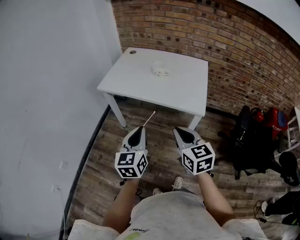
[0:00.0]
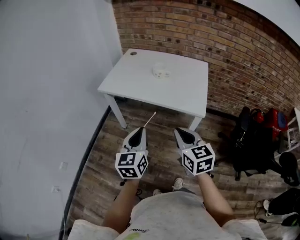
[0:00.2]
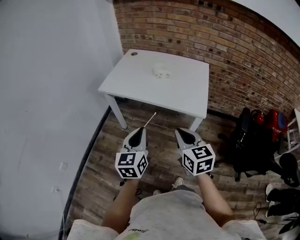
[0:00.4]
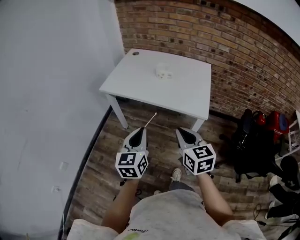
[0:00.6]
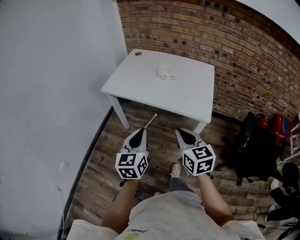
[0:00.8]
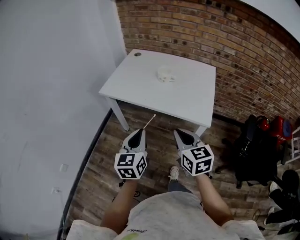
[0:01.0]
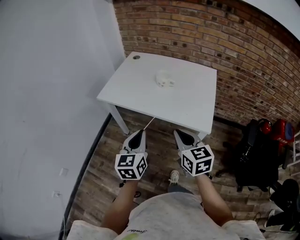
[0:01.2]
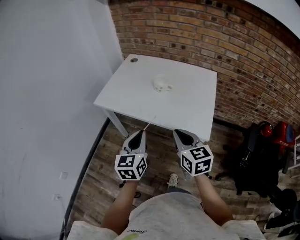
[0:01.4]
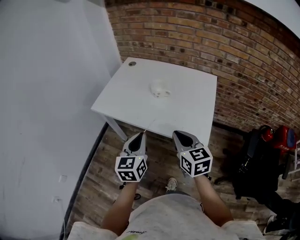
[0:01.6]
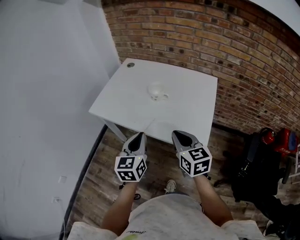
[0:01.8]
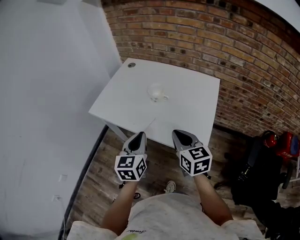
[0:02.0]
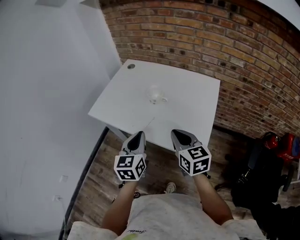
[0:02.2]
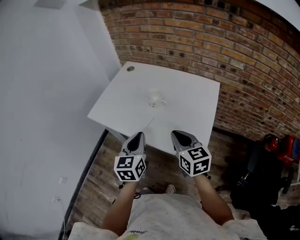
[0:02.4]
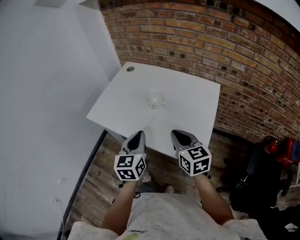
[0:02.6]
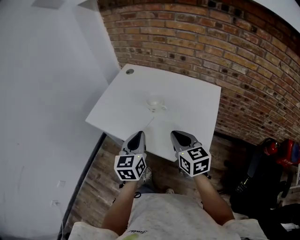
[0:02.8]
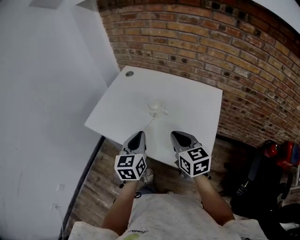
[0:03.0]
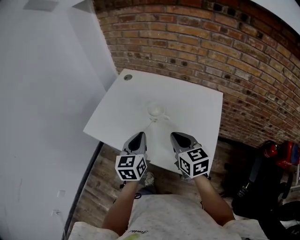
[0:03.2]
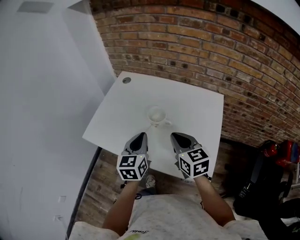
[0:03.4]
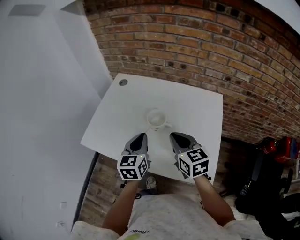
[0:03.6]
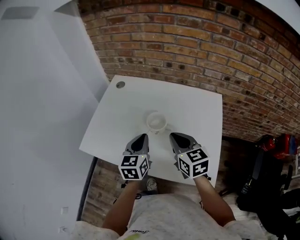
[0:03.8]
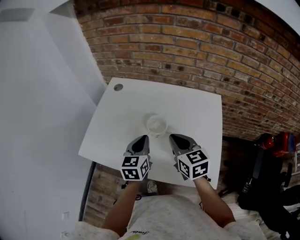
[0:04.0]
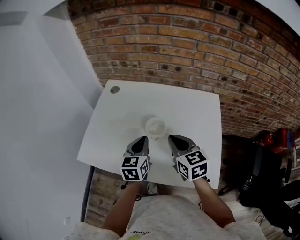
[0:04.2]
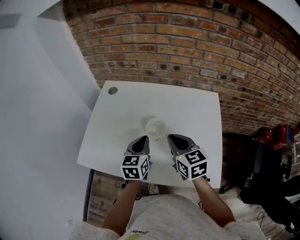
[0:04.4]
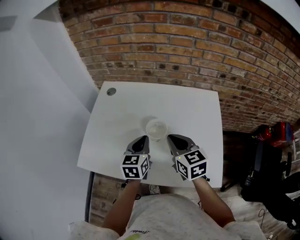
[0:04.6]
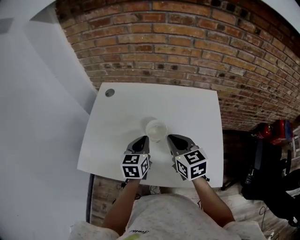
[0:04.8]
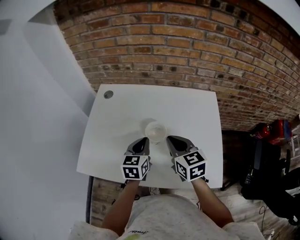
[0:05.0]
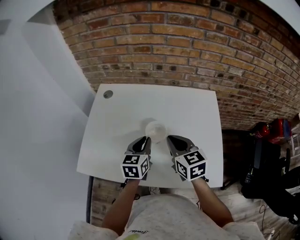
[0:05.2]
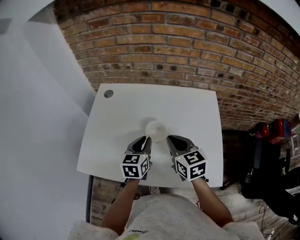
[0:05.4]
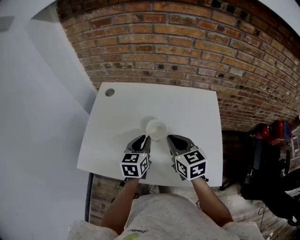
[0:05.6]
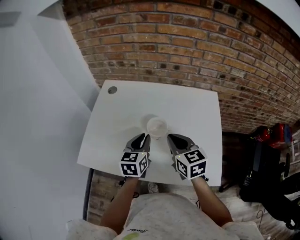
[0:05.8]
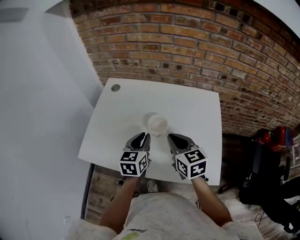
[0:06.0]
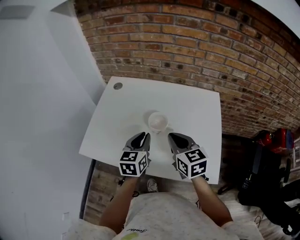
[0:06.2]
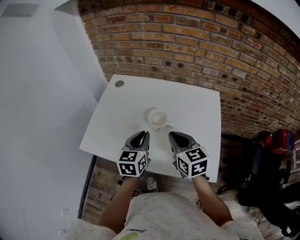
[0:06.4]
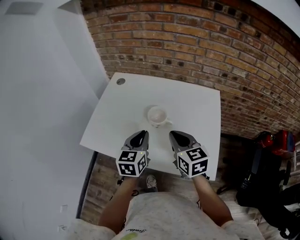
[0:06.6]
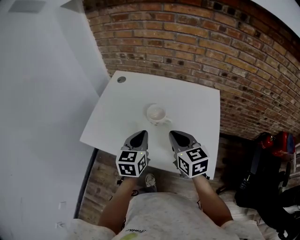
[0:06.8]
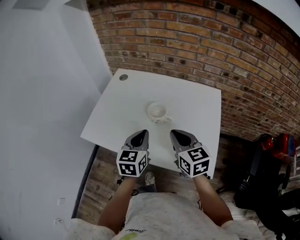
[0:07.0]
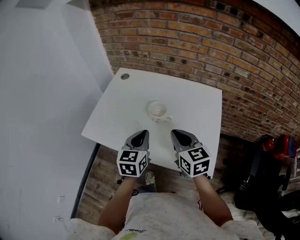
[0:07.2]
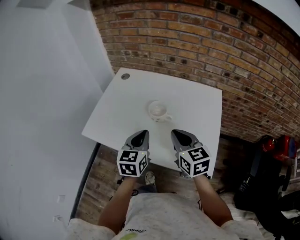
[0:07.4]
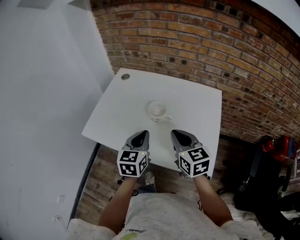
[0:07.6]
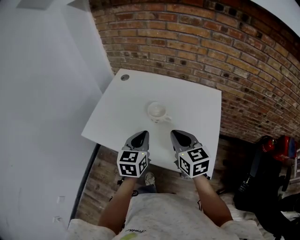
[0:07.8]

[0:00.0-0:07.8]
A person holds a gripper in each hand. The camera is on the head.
0:00.0 to 0:01.6: The grippers both shift forward by some 20 cm.
0:01.6 to 0:03.2: The two grippers go approximately 20 cm forward.
0:03.2 to 0:04.6: The right gripper is displaced forward by roughly 15 cm; the left gripper shifts approximately 15 cm forward and downward.
0:04.6 to 0:06.2: The left gripper ends up roughly 5 cm from where it was.
0:06.2 to 0:07.8: The two grippers go about 10 cm backward.

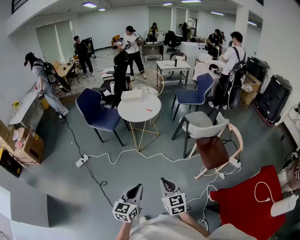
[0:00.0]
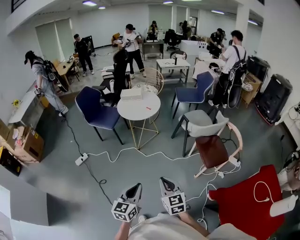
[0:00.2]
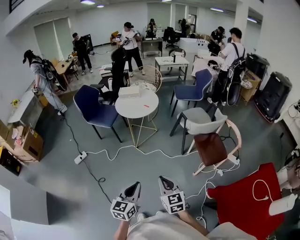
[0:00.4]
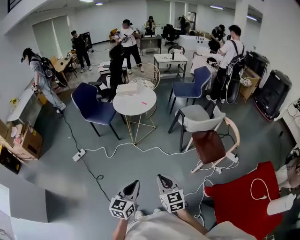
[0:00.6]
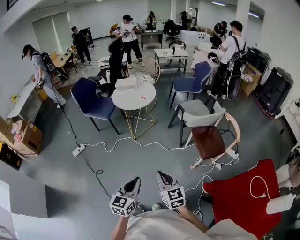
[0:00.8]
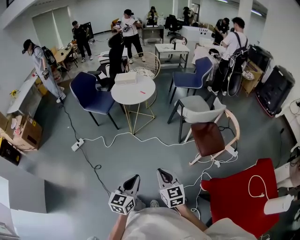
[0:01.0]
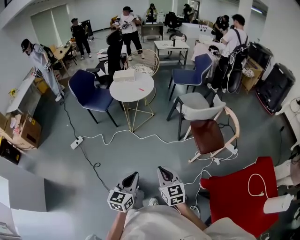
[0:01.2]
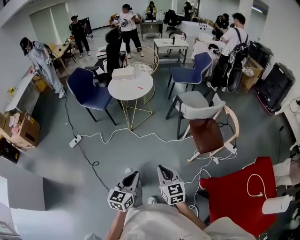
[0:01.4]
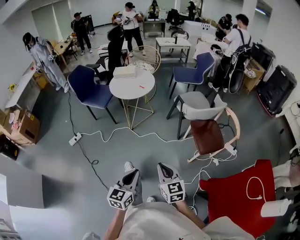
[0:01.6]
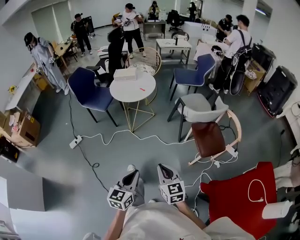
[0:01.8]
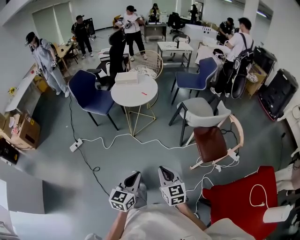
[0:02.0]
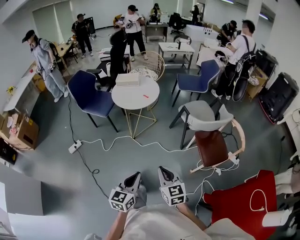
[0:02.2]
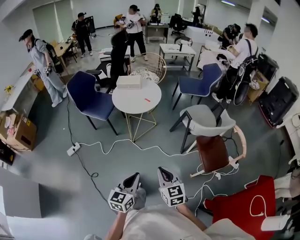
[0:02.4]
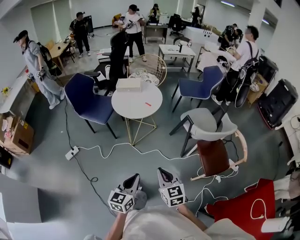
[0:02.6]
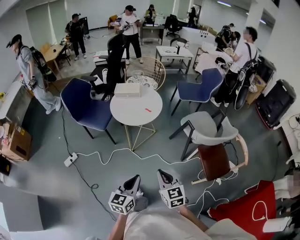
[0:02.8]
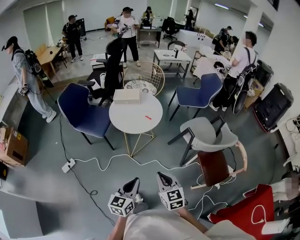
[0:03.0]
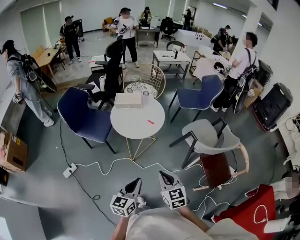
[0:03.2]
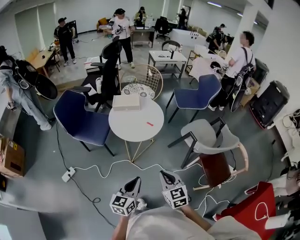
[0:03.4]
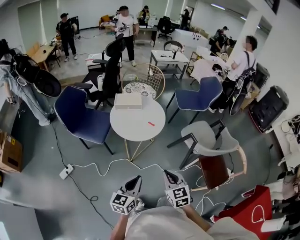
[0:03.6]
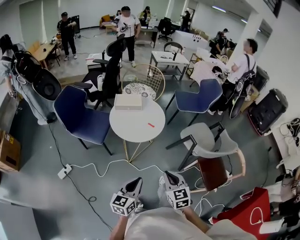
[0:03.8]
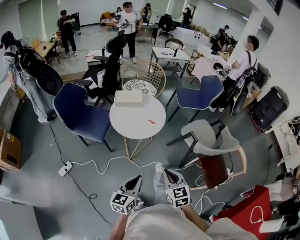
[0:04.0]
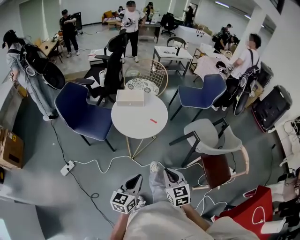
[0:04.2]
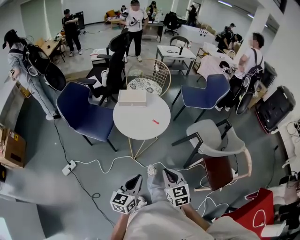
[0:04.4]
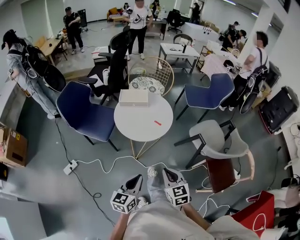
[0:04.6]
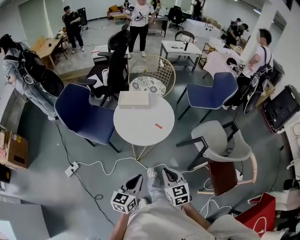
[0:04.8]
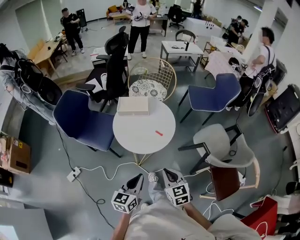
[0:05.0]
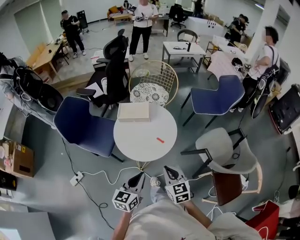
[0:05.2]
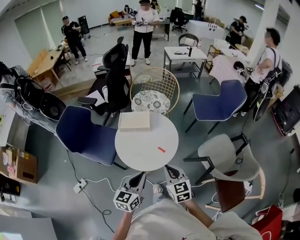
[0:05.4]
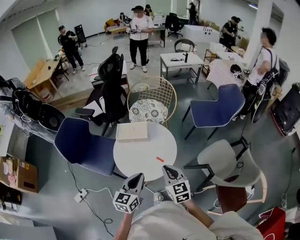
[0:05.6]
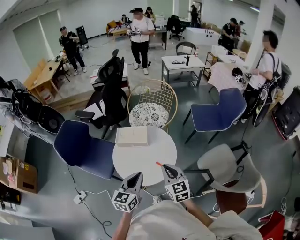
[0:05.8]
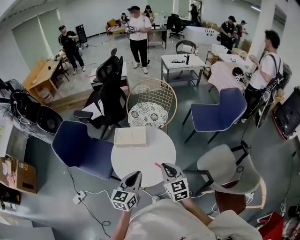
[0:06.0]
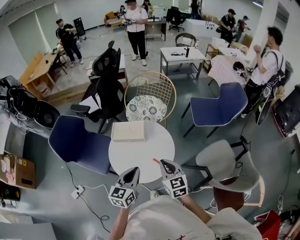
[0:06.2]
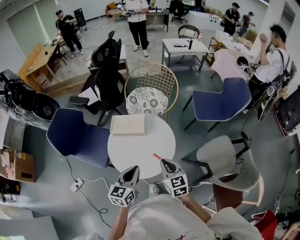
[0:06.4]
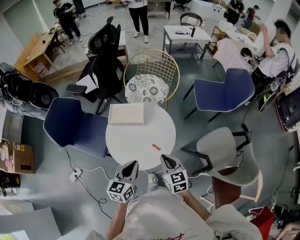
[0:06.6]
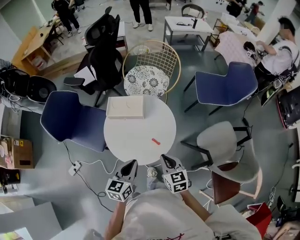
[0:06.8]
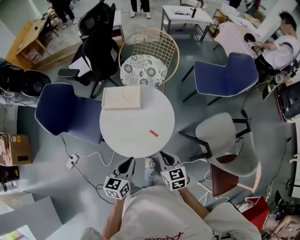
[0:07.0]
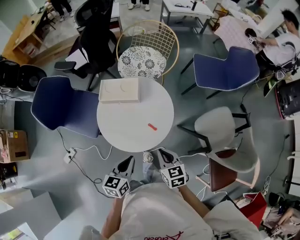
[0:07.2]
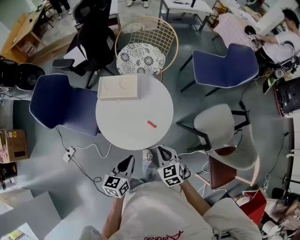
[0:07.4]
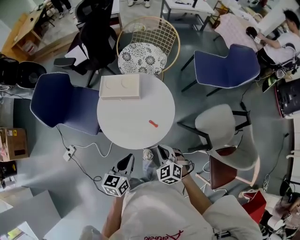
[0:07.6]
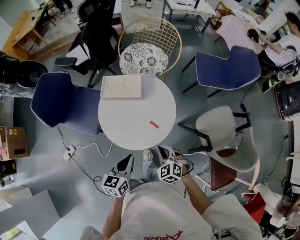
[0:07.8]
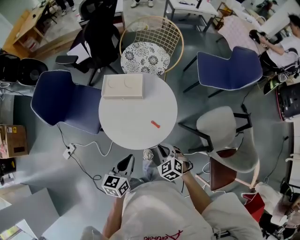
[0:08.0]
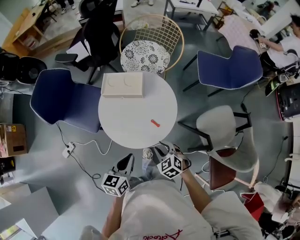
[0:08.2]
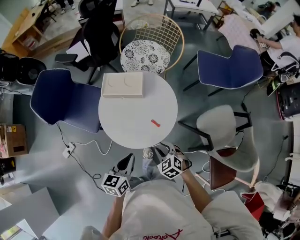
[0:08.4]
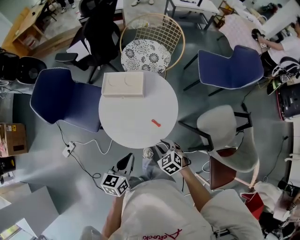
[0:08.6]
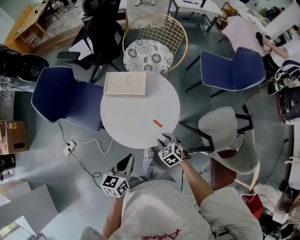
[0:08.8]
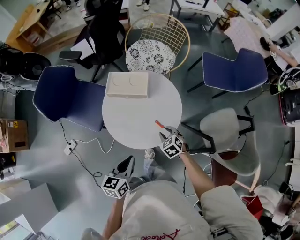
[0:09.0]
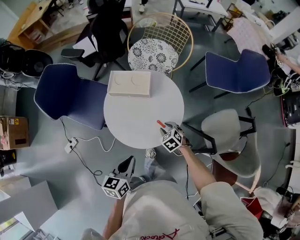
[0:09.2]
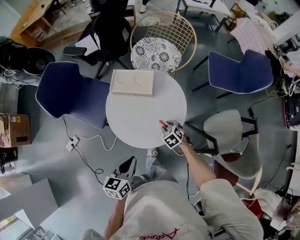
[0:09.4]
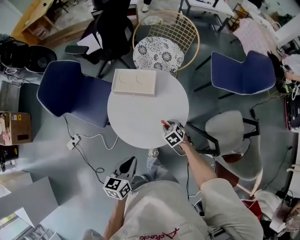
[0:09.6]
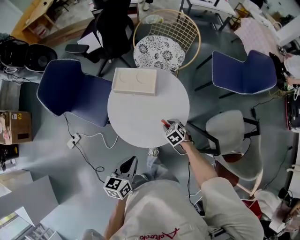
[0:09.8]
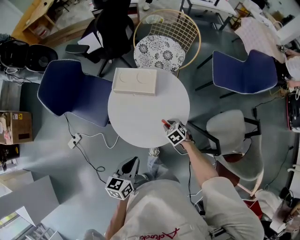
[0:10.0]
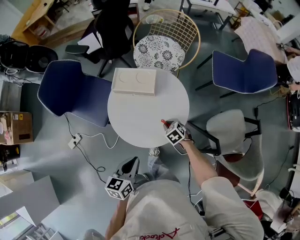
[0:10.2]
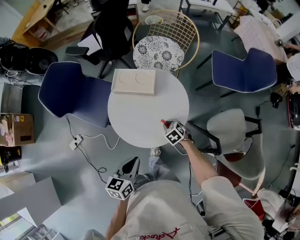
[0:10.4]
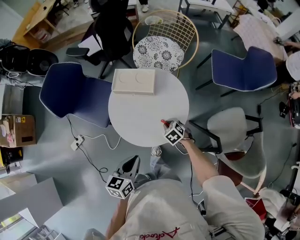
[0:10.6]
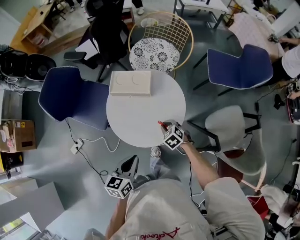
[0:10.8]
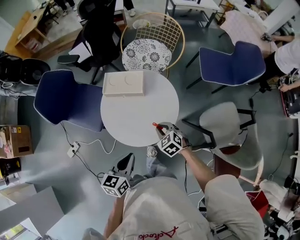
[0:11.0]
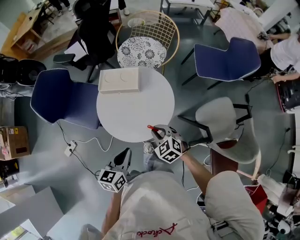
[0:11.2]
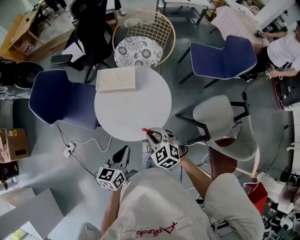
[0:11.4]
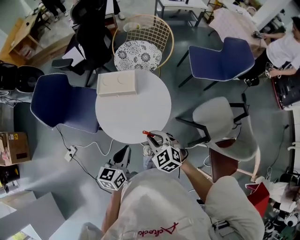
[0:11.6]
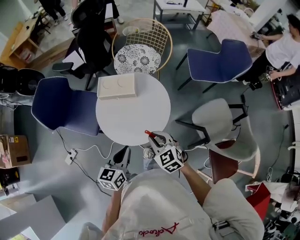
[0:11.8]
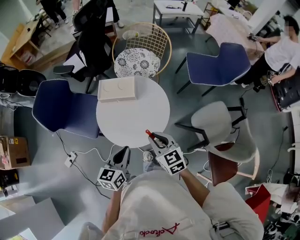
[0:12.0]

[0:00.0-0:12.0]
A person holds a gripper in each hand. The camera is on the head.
0:00.0 to 0:01.6: Both grippers move to the right, some 10 cm.
0:01.6 to 0:03.0: Both grippers travel together forward and to the left, some 30 cm.
0:03.0 to 0:04.4: The left gripper is displaced forward and to the left by approximately 10 cm, while the right gripper heads forward, covering about 10 cm.
0:04.4 to 0:06.0: The grippers both shift forward by approximately 35 cm.
0:06.0 to 0:07.6: The left gripper shifts about 10 cm downward and backward. The right gripper is displaced downward by about 15 cm, and turns by roughly 40 degrees.
0:07.6 to 0:09.0: The right gripper goes about 15 cm downward and forward, and opens its fingers.
0:09.0 to 0:10.4: The right gripper ends up approximately 5 cm from where it was.
0:10.4 to 0:12.0: The left gripper shifts by approximately 5 cm. Meanwhile the right gripper goes roughly 25 cm upward, and tips its fingers upward by some 40 degrees.

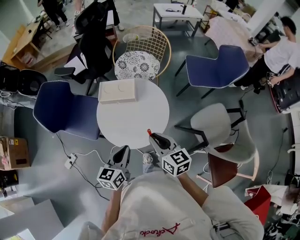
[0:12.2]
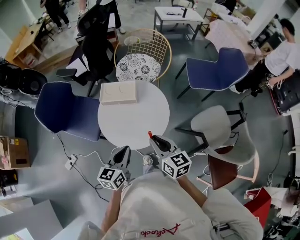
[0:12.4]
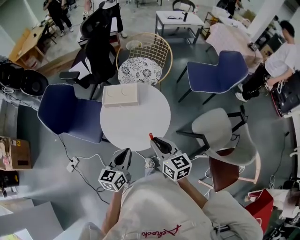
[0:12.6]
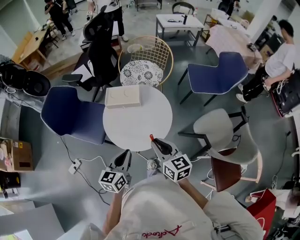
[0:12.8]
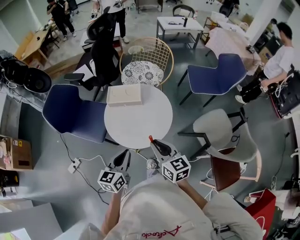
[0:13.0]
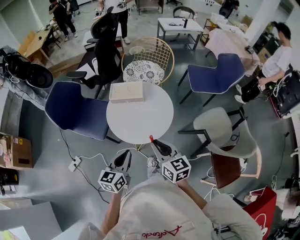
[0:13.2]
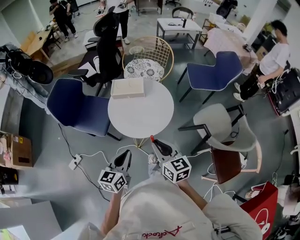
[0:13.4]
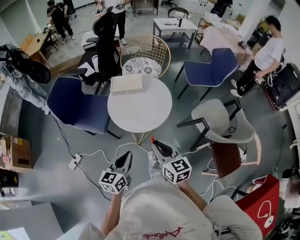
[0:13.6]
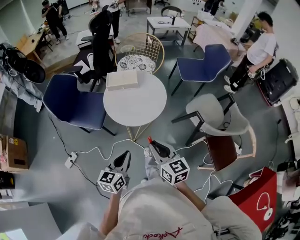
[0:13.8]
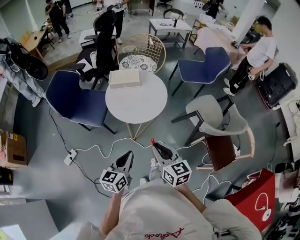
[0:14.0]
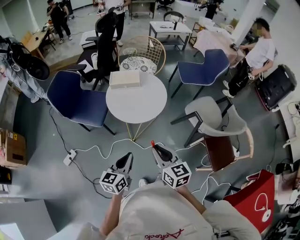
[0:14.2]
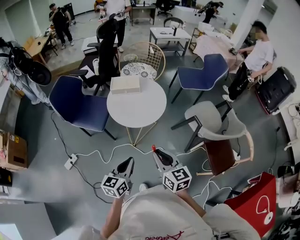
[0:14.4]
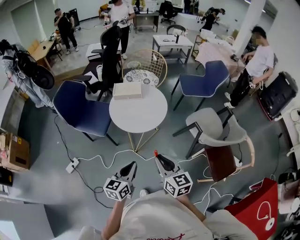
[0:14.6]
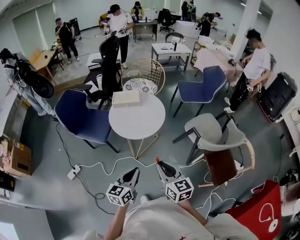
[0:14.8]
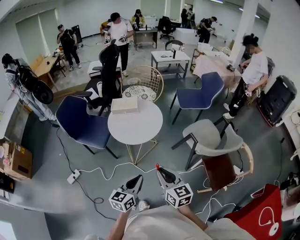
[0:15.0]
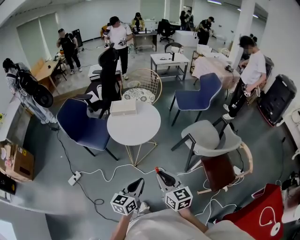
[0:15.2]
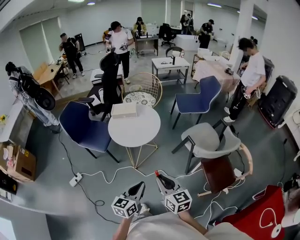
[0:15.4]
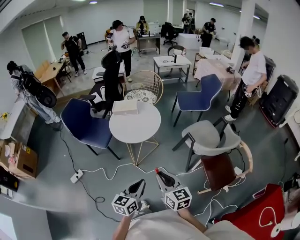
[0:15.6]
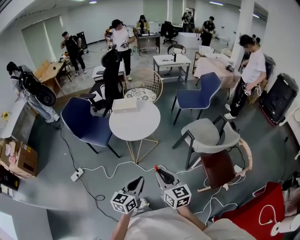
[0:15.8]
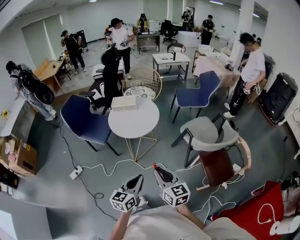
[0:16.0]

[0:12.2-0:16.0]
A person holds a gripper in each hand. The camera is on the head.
0:12.2 to 0:13.4: The left gripper travels backward and to the left by approximately 15 cm, while the right gripper heads backward, covering about 15 cm.
0:13.4 to 0:14.8: The grippers both shift backward by some 20 cm.
0:14.8 to 0:16.0: The two grippers go some 15 cm backward and to the right.
